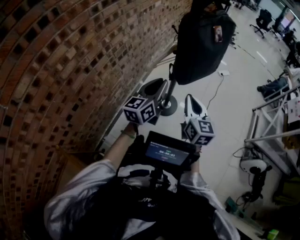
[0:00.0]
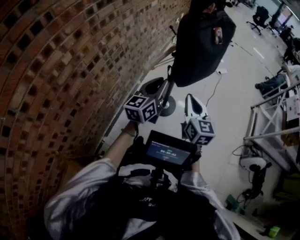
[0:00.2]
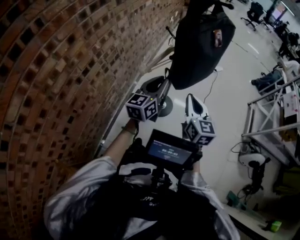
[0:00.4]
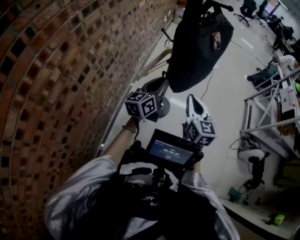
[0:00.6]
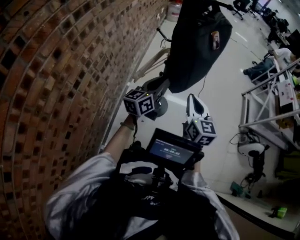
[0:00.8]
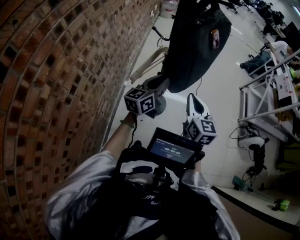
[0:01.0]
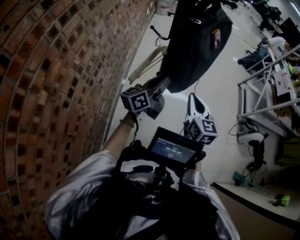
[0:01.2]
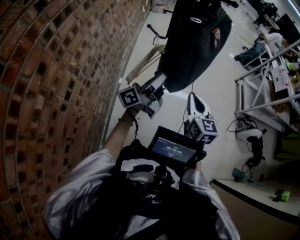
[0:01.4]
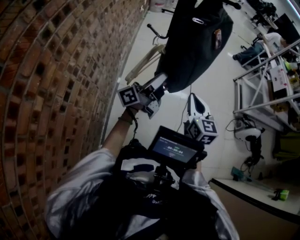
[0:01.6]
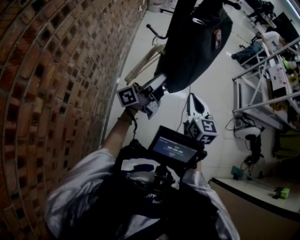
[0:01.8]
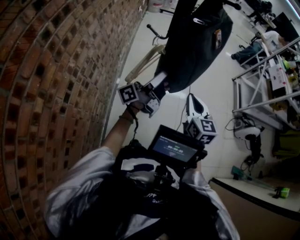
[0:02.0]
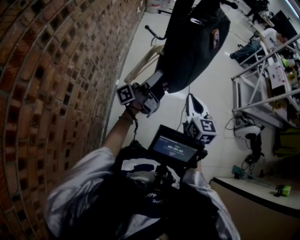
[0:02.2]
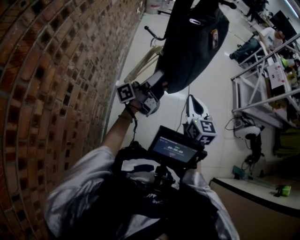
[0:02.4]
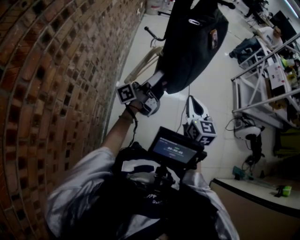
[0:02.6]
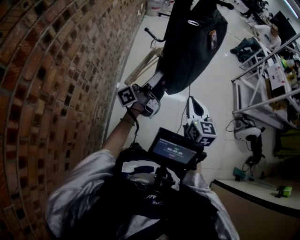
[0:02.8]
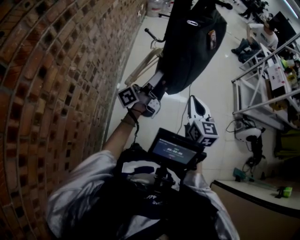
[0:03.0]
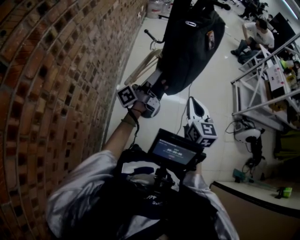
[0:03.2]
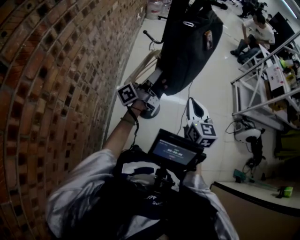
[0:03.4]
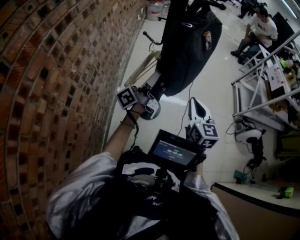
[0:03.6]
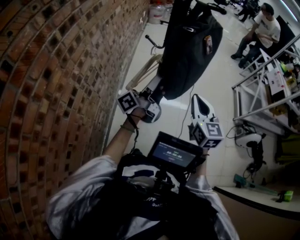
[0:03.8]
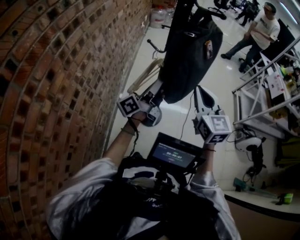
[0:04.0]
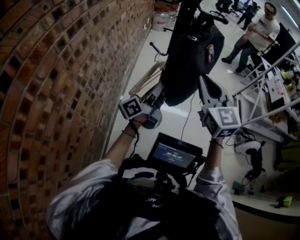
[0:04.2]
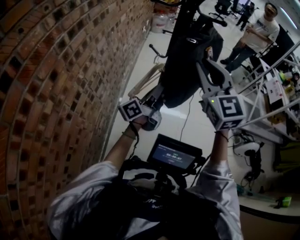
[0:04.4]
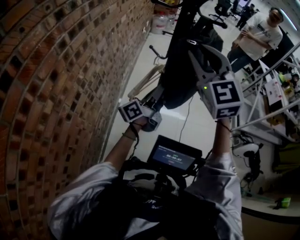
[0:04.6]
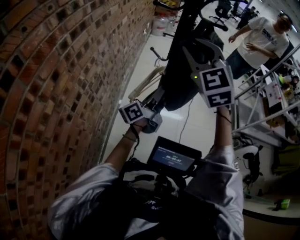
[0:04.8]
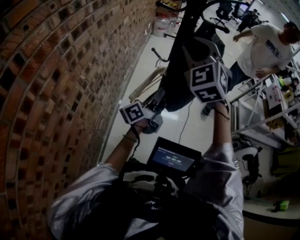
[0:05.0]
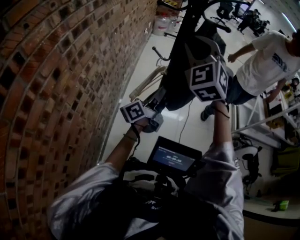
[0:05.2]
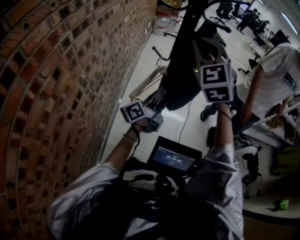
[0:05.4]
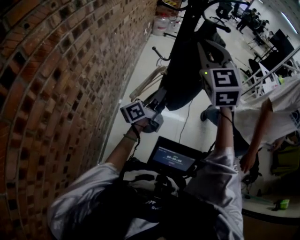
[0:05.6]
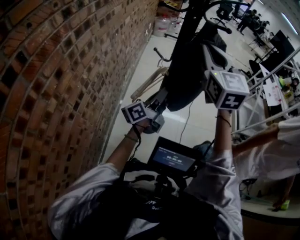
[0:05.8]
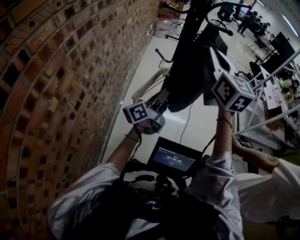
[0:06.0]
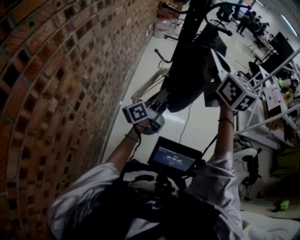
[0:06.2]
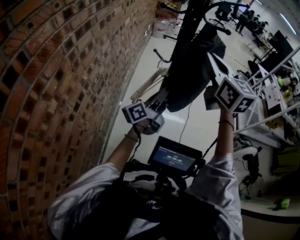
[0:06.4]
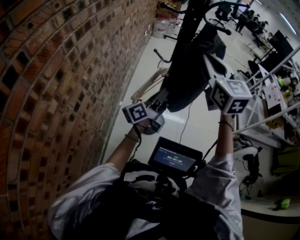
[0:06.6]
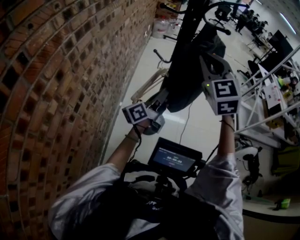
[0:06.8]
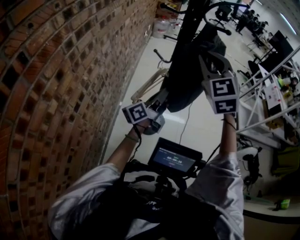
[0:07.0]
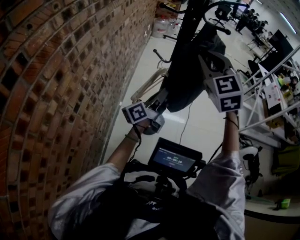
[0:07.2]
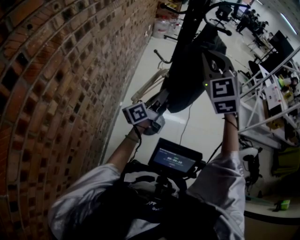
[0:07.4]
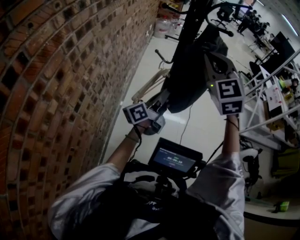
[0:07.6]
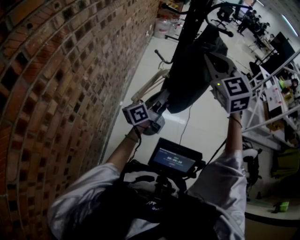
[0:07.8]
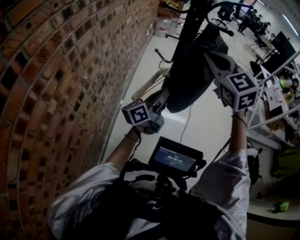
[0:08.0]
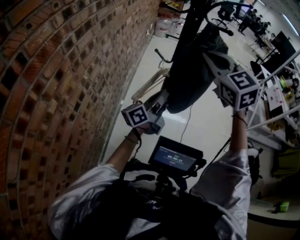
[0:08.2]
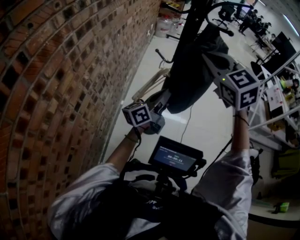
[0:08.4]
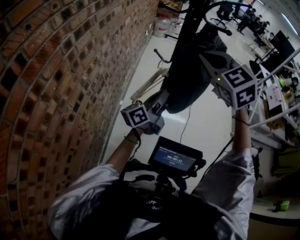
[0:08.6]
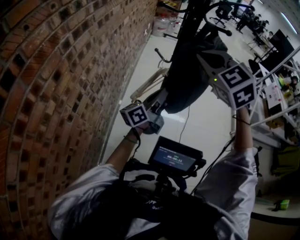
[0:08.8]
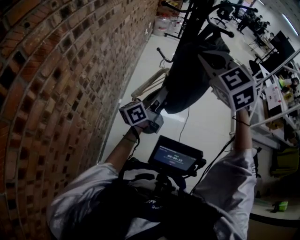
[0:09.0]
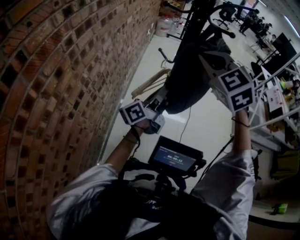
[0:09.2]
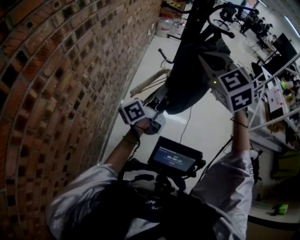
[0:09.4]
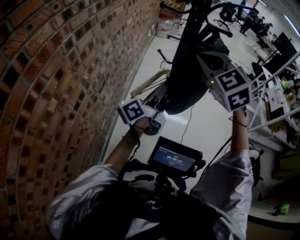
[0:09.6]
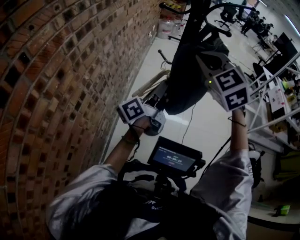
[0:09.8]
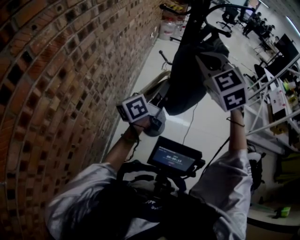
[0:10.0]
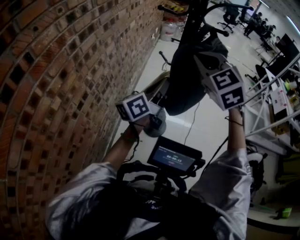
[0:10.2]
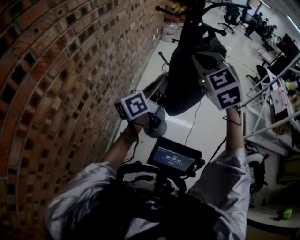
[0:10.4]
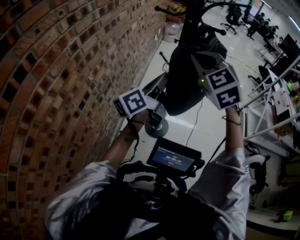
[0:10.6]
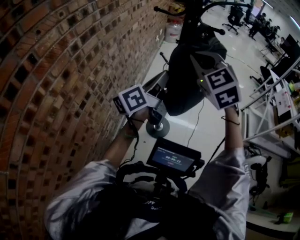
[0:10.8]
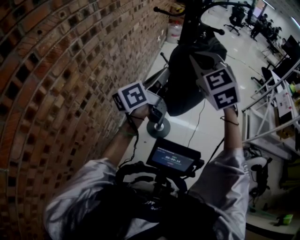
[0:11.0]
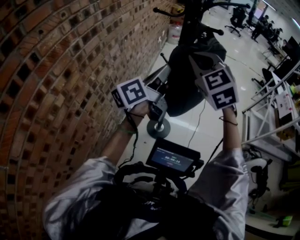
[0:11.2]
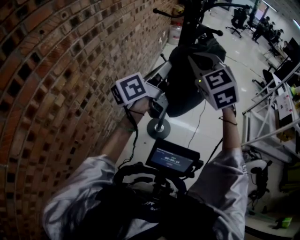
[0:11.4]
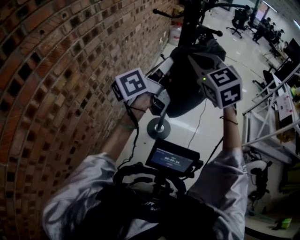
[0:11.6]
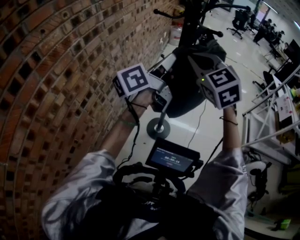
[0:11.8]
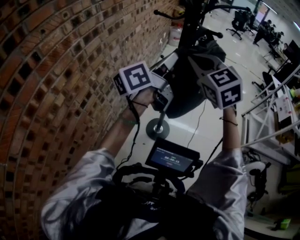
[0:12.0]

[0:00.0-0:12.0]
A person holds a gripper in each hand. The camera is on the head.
0:00.0 to 0:01.6: Both grippers travel together forward, some 10 cm. The left gripper turns by some 70 degrees.
0:01.6 to 0:03.0: The grippers stay close to where they were, moving slightly.
0:03.0 to 0:04.4: The right gripper shifts about 25 cm upward, and changes its angle by approximately 30 degrees.
0:04.4 to 0:06.0: The right gripper goes approximately 5 cm forward, and rotates approximately 20 degrees.
0:06.0 to 0:07.6: The right gripper swivels some 40 degrees.
0:07.6 to 0:09.0: The grippers make only small movements.
0:09.0 to 0:10.4: The left gripper is displaced upward by roughly 5 cm.
0:10.4 to 0:12.0: The left gripper goes approximately 10 cm upward.

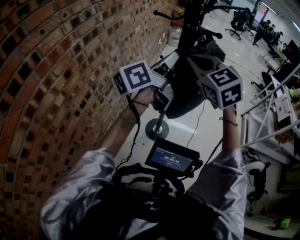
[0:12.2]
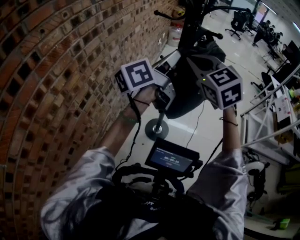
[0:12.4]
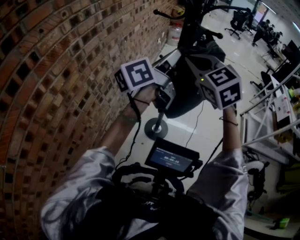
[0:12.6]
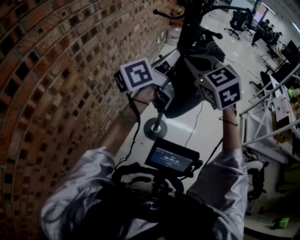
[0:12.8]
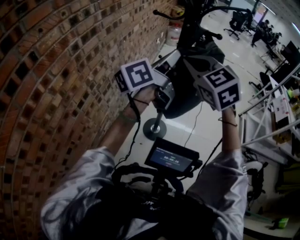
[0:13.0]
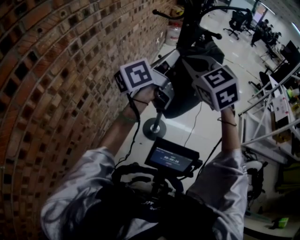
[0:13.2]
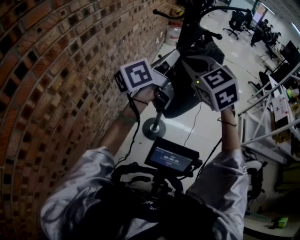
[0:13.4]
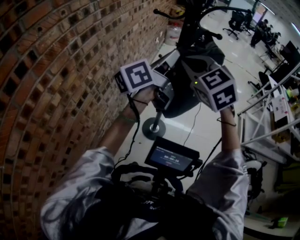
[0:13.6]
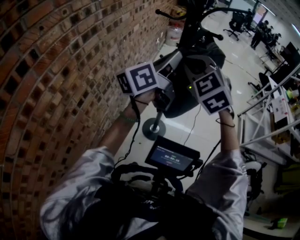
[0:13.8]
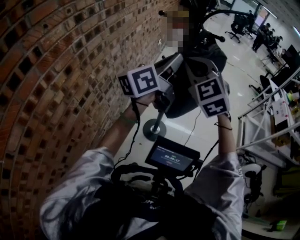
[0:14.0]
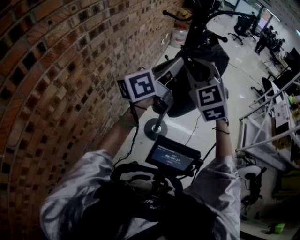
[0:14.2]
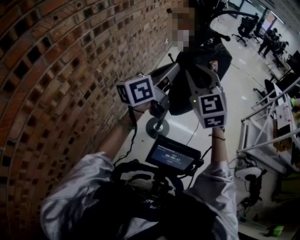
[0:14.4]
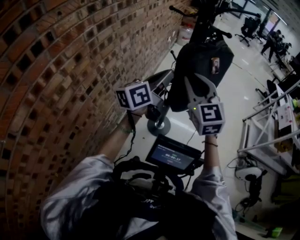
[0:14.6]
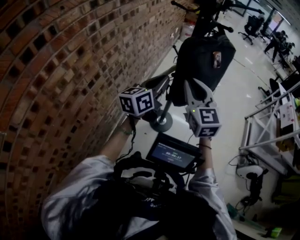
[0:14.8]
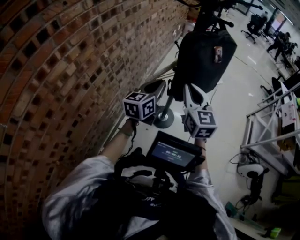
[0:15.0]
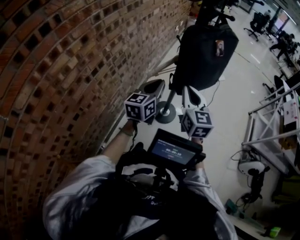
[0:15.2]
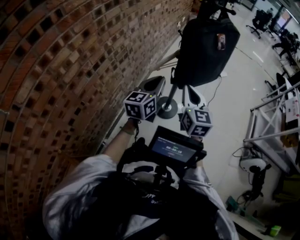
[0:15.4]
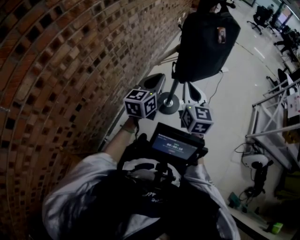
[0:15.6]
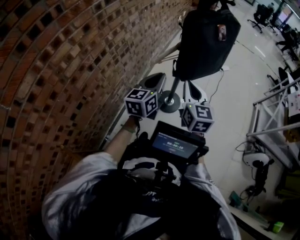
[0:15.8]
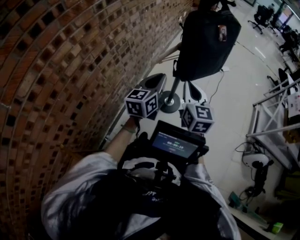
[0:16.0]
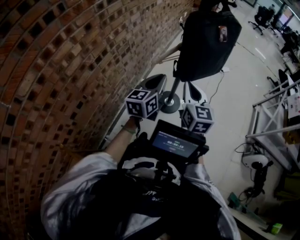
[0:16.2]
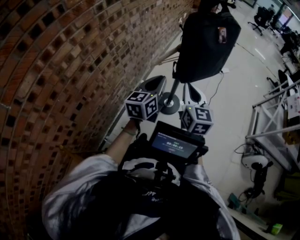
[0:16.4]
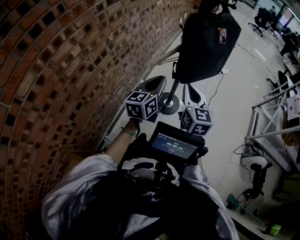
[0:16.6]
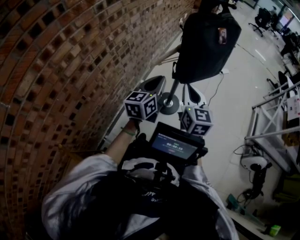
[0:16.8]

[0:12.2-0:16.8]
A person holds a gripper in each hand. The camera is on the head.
0:12.2 to 0:13.8: The grippers move only a little.
0:13.8 to 0:15.2: Both grippers move downward and backward, approximately 20 cm. The left gripper rotates about 40 degrees, while the right gripper rolls clockwise, seen from behind, by about 50 degrees.
0:15.2 to 0:16.8: There are only small adjustments of the grippers.

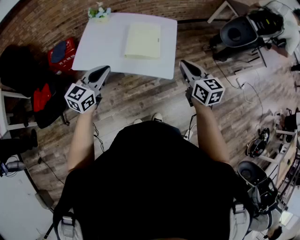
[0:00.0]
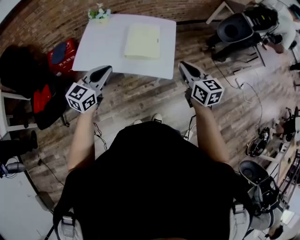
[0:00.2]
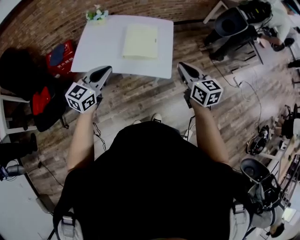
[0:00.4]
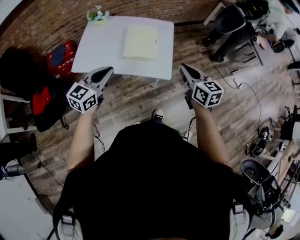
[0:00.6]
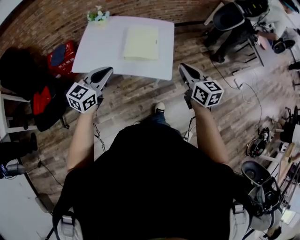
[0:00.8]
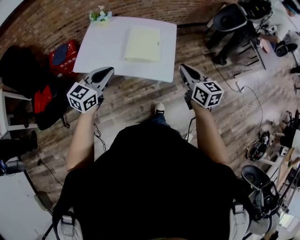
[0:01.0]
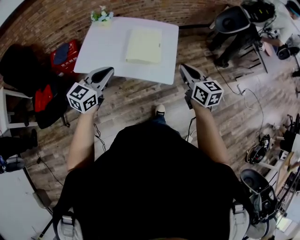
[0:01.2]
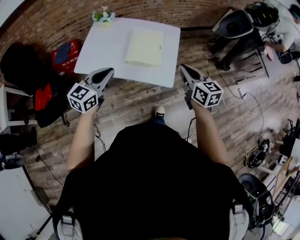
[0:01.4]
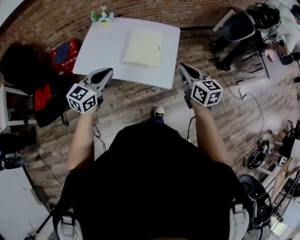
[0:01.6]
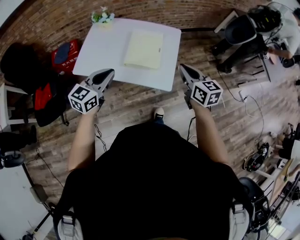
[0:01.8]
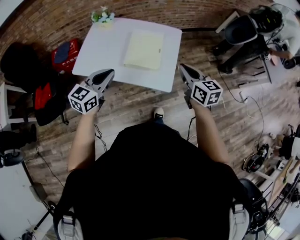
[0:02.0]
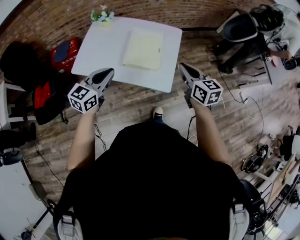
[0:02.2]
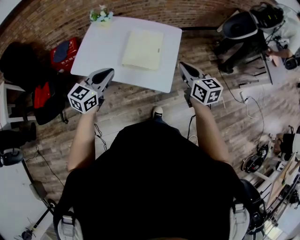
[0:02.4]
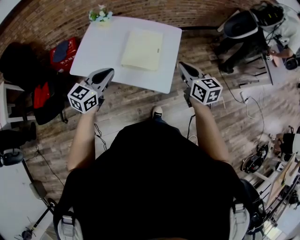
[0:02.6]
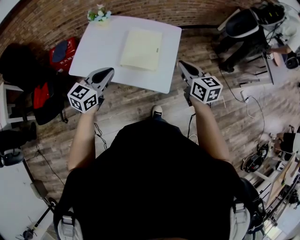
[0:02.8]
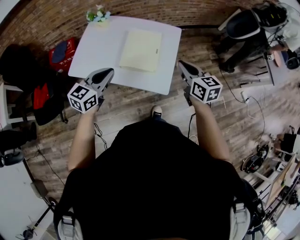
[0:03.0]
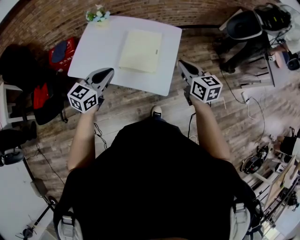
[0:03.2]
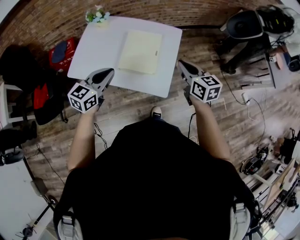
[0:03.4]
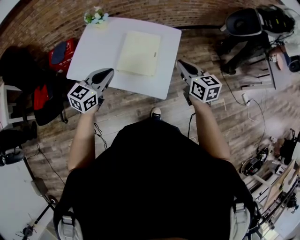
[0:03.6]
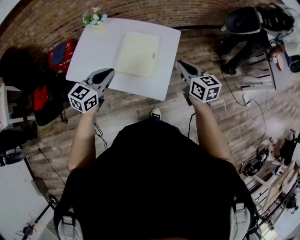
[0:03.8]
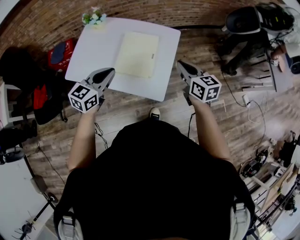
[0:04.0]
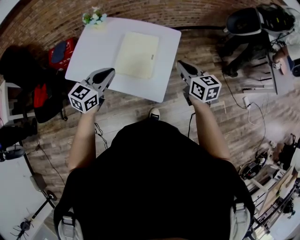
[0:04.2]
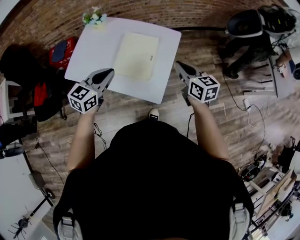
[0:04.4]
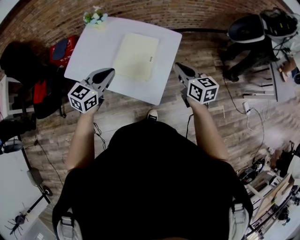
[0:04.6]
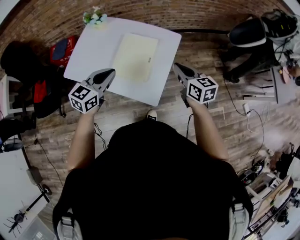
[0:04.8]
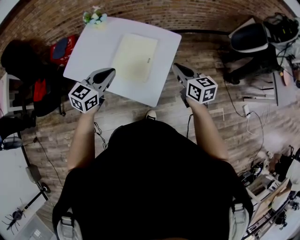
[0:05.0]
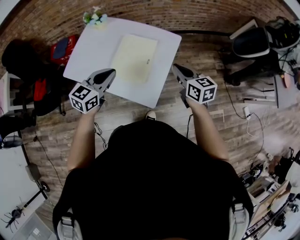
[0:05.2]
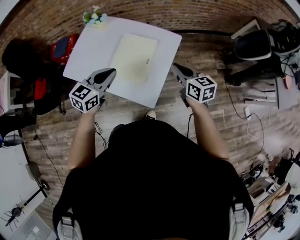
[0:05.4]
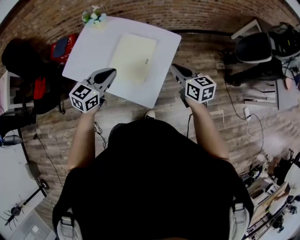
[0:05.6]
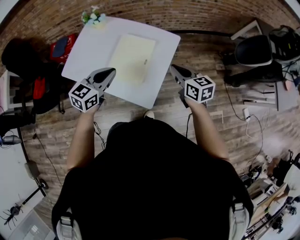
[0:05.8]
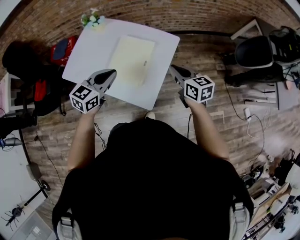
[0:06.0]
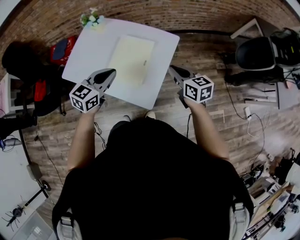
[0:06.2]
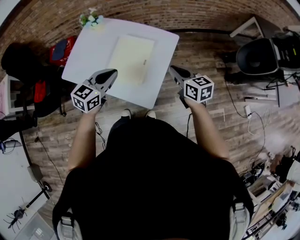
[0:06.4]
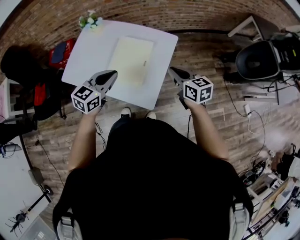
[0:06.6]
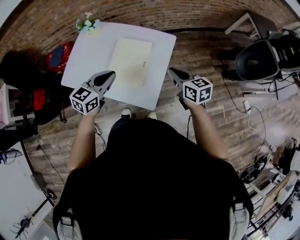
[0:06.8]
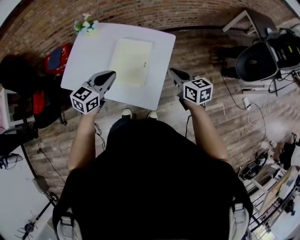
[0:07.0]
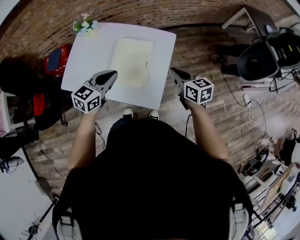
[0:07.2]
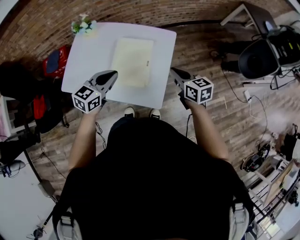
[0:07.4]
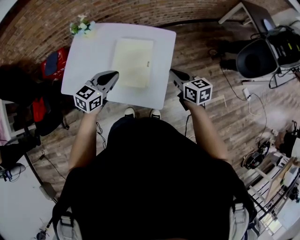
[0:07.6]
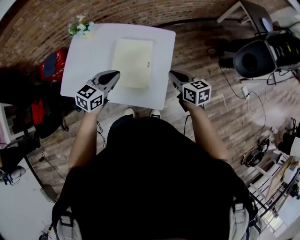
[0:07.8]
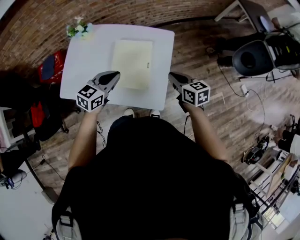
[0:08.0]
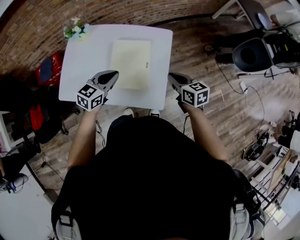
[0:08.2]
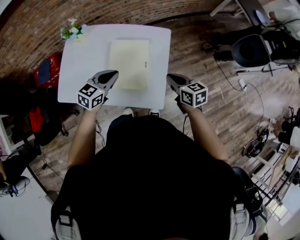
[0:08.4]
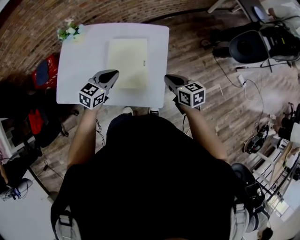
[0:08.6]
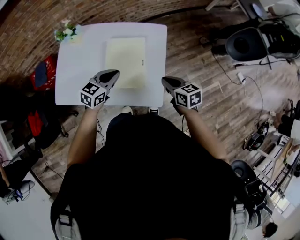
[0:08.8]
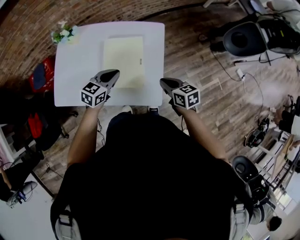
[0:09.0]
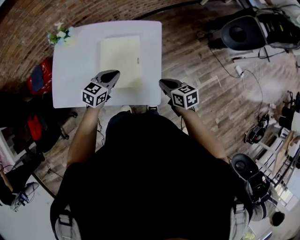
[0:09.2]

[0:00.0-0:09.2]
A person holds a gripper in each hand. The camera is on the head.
0:00.0 to 0:01.6: The right gripper moves forward, about 5 cm.
0:01.6 to 0:03.0: The two grippers go approximately 10 cm forward.
0:03.0 to 0:04.6: The right gripper shifts about 10 cm forward and to the right. The left gripper goes roughly 10 cm to the right and forward.
0:04.6 to 0:06.2: The right gripper ends up about 5 cm from where it was; the left gripper travels to the right by about 5 cm.
0:06.2 to 0:07.6: The left gripper moves some 5 cm, while the right gripper changes place by some 5 cm.
0:07.6 to 0:09.2: The two grippers go about 10 cm downward.
